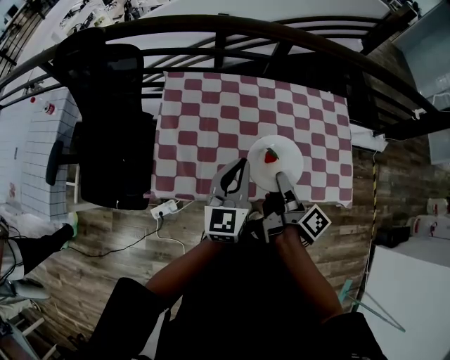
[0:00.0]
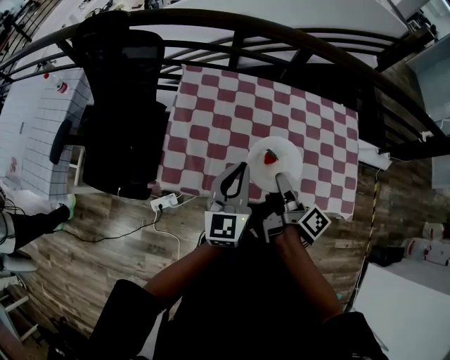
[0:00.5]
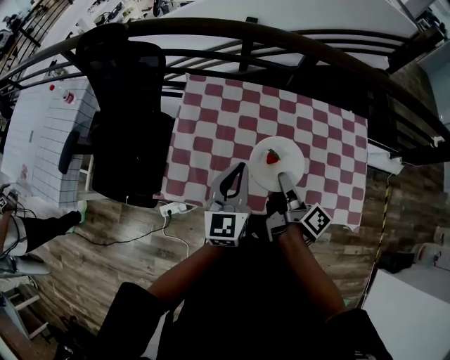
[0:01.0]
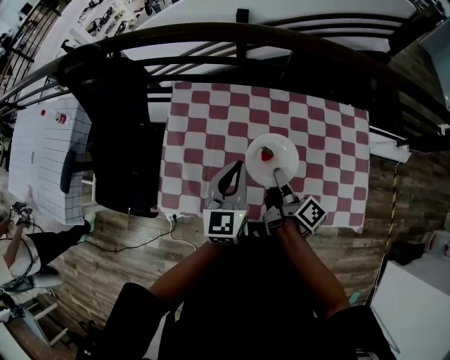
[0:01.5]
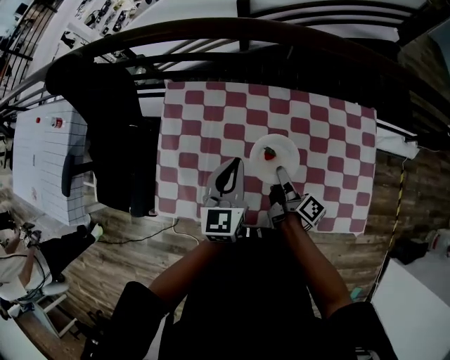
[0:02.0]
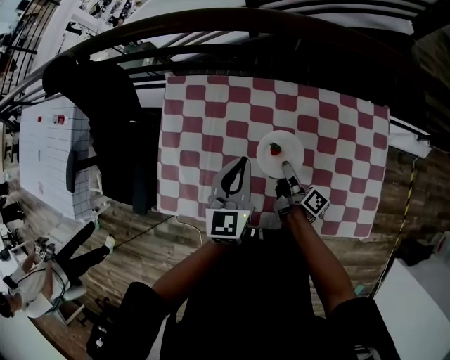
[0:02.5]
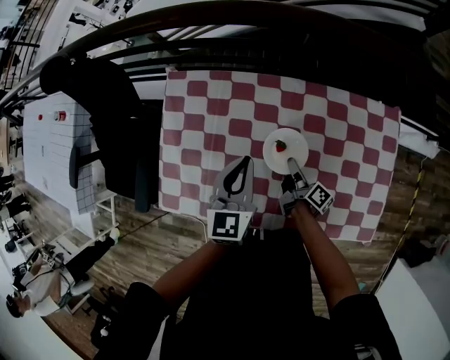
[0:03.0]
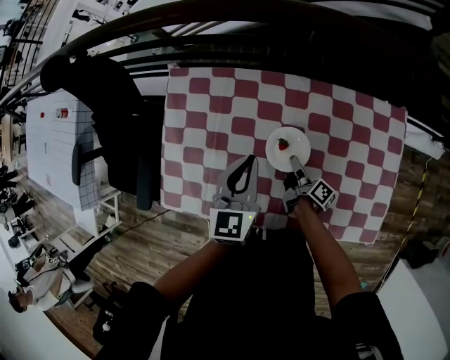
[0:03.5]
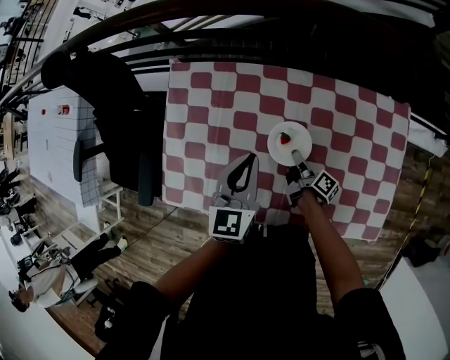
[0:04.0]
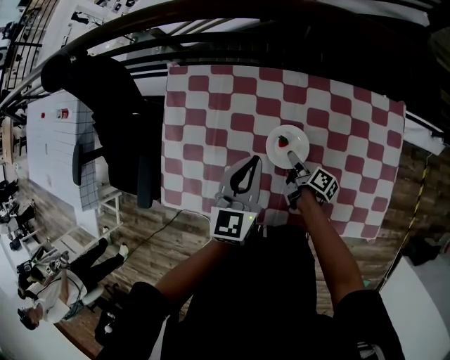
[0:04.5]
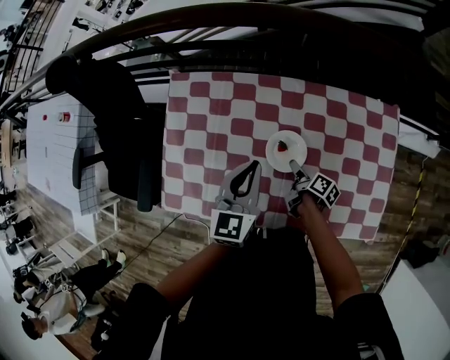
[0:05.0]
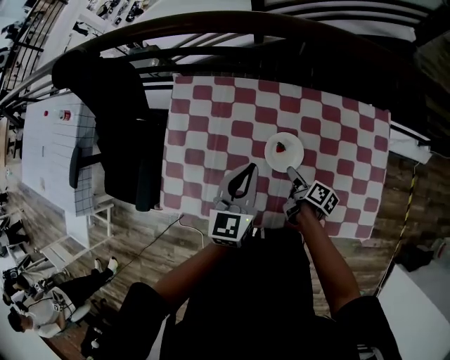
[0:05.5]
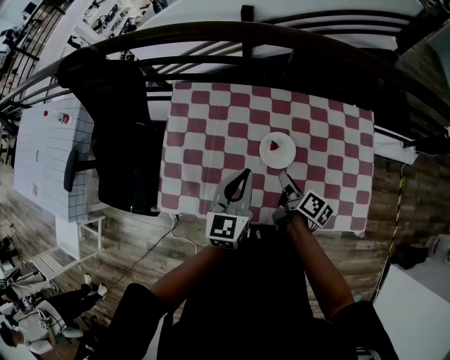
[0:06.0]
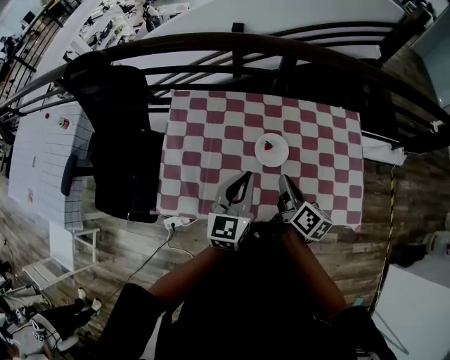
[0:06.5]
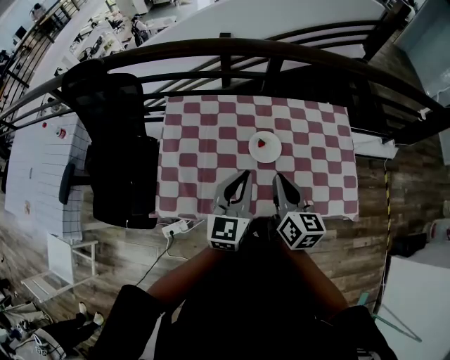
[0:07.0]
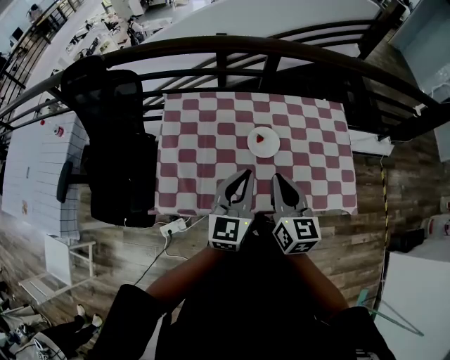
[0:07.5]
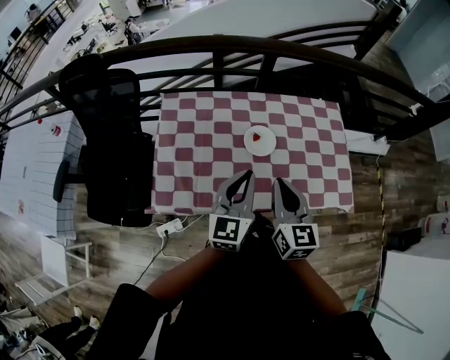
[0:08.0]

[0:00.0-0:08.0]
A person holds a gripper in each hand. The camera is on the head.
0:00.0 to 0:02.0: The left gripper ends up about 15 cm from where it was.
0:02.0 to 0:04.0: The left gripper shifts by about 5 cm.
0:04.0 to 0:06.0: The left gripper shifts by roughly 10 cm.
0:06.0 to 0:08.0: The left gripper moves about 15 cm.

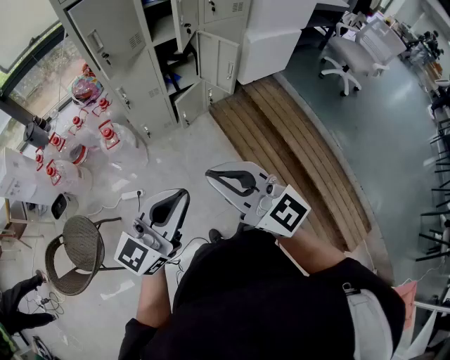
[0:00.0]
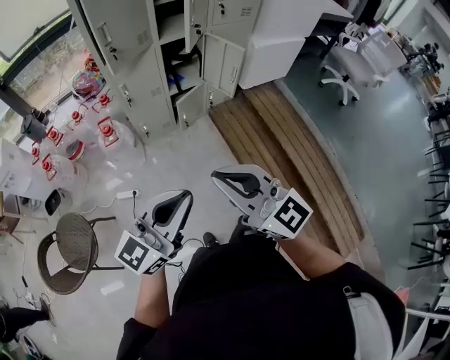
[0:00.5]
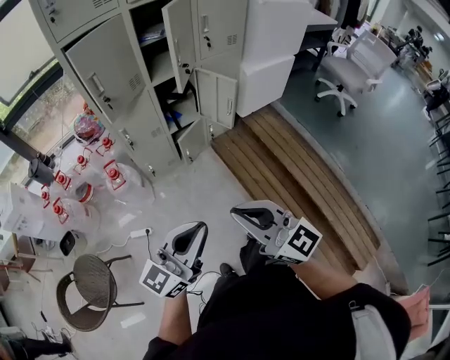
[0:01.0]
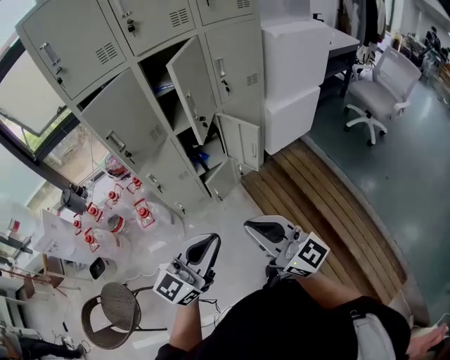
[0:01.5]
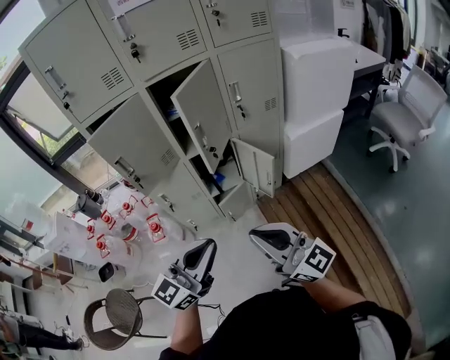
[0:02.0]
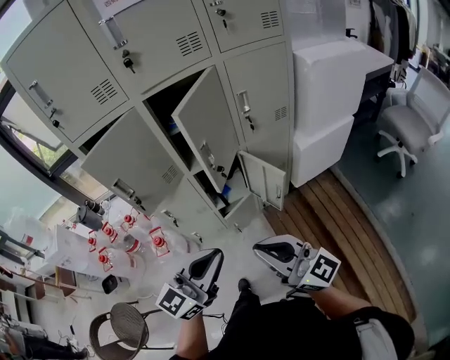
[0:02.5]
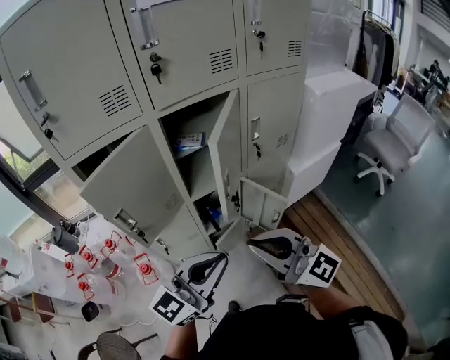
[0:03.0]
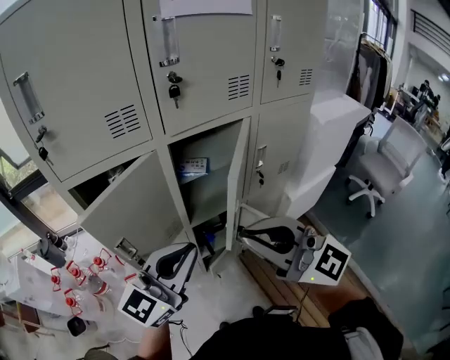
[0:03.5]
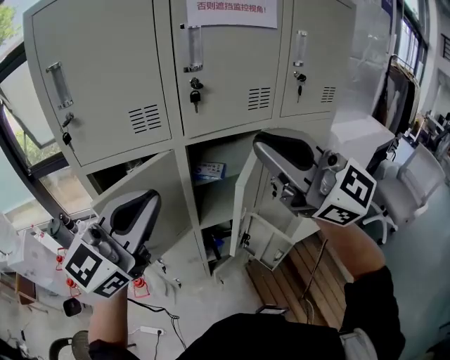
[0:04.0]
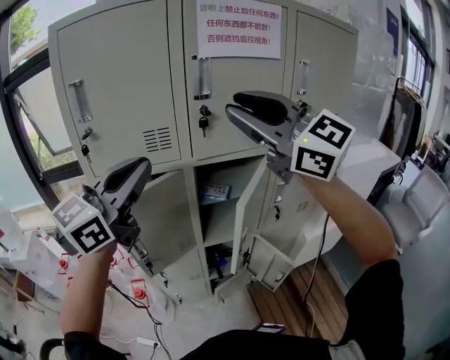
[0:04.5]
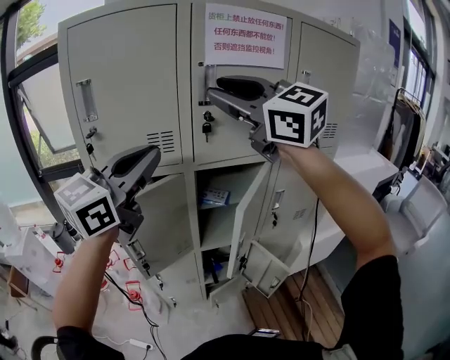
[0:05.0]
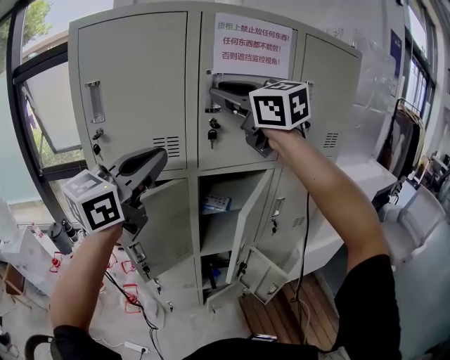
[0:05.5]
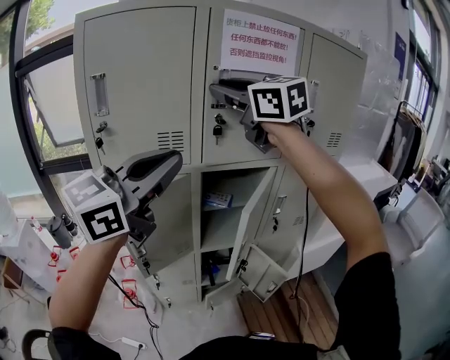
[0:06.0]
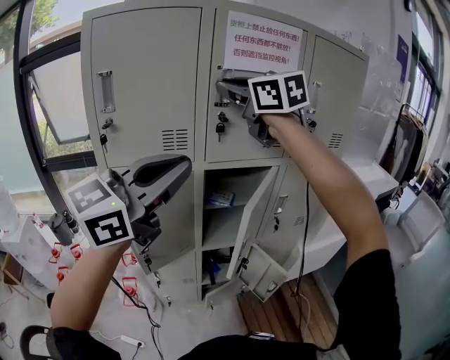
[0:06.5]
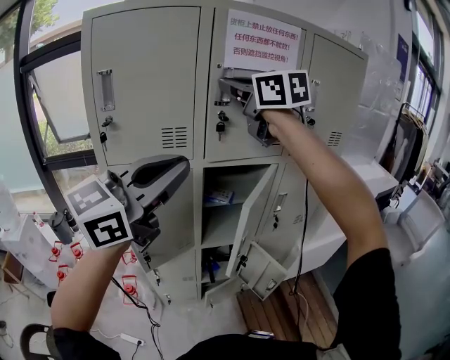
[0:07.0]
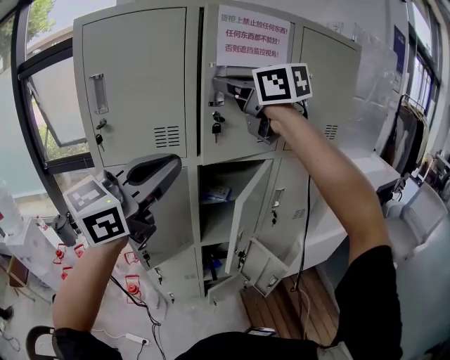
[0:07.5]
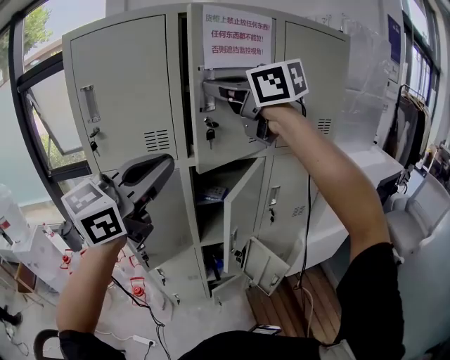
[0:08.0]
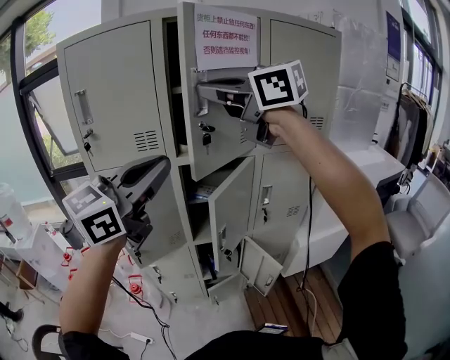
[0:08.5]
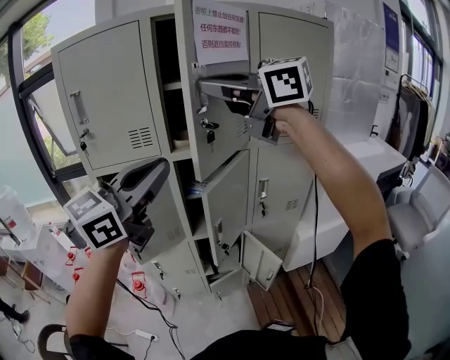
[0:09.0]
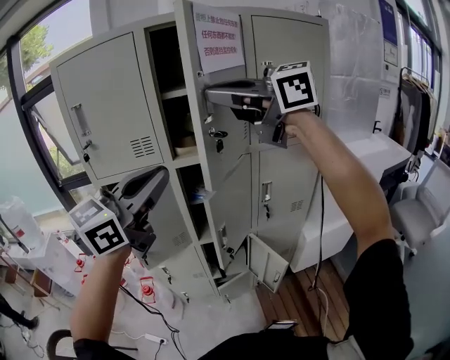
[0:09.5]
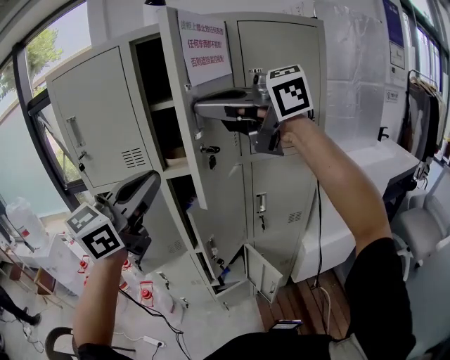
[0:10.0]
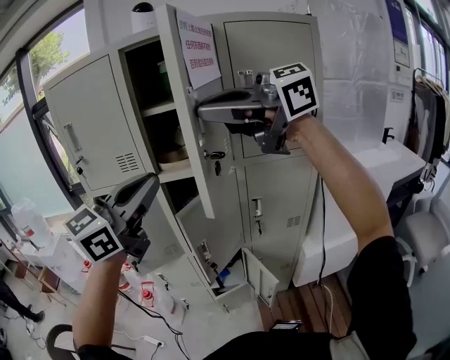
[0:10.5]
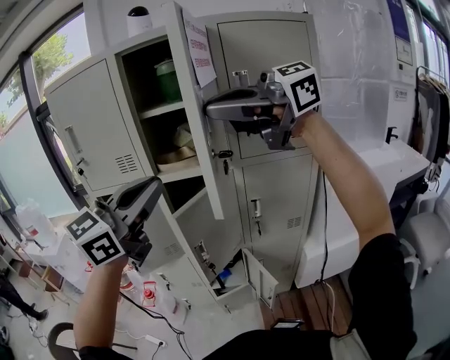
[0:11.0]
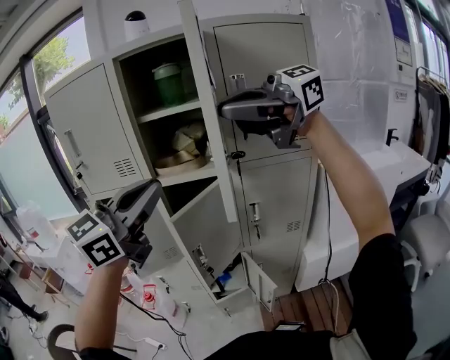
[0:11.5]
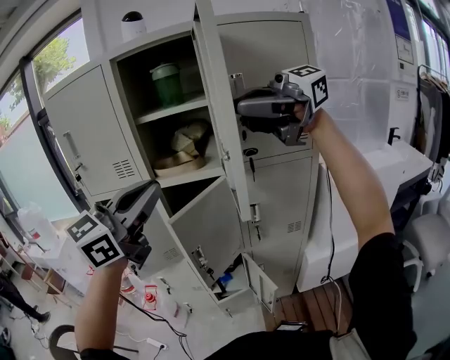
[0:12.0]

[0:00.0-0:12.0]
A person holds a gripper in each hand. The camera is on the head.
0:00.0 to 0:02.0: The left gripper shifts about 30 cm forward. The right gripper heads forward and to the right, covering roughly 30 cm.
0:02.0 to 0:04.0: The right gripper travels forward and upward by some 50 cm, and turns by some 30 degrees; the left gripper heads forward, upward and to the left, covering some 40 cm.
0:04.0 to 0:06.0: The left gripper goes some 10 cm upward, while the right gripper travels forward, upward and to the left by roughly 25 cm, changes its angle by about 20 degrees, and opens up.
0:06.0 to 0:08.0: The right gripper travels backward by about 5 cm, and closes its fingers. The left gripper shifts by some 5 cm.
0:08.0 to 0:10.0: The right gripper moves approximately 15 cm, and turns by approximately 30 degrees, while the left gripper changes place by roughly 10 cm.
0:10.0 to 0:12.0: The right gripper moves some 15 cm, and swivels roughly 30 degrees; the left gripper ends up approximately 10 cm from where it was.

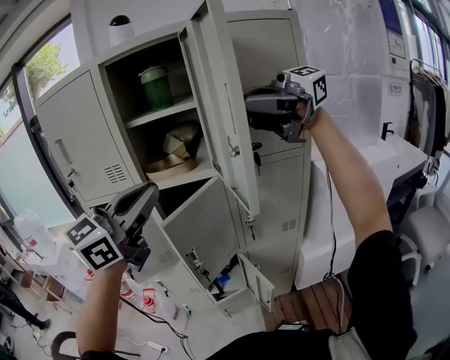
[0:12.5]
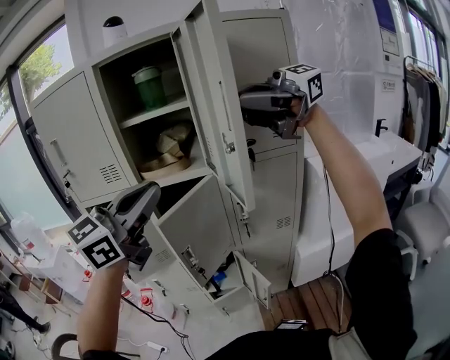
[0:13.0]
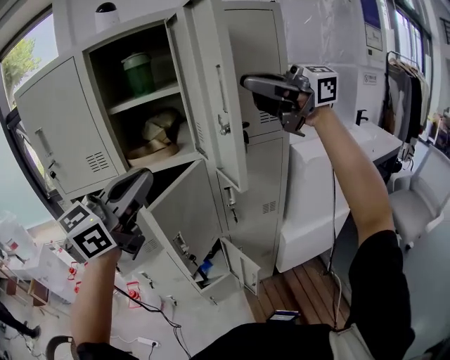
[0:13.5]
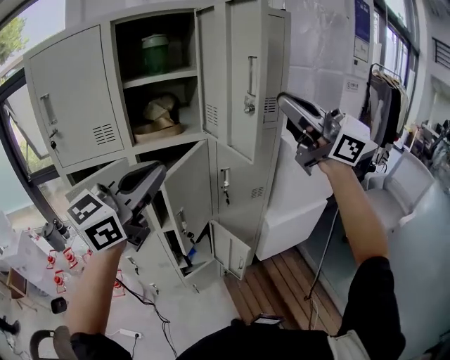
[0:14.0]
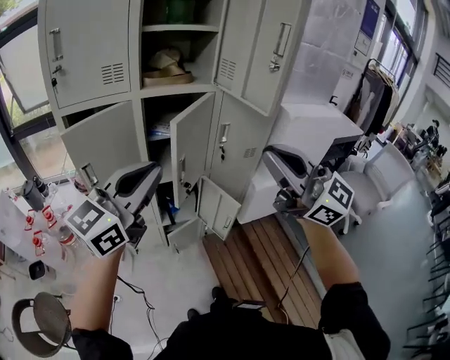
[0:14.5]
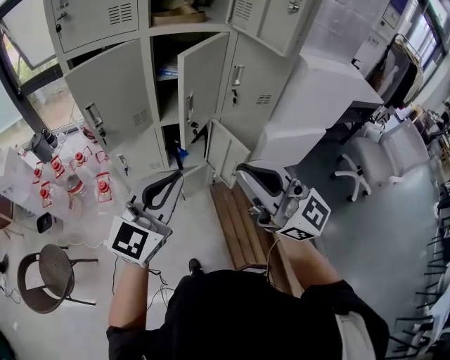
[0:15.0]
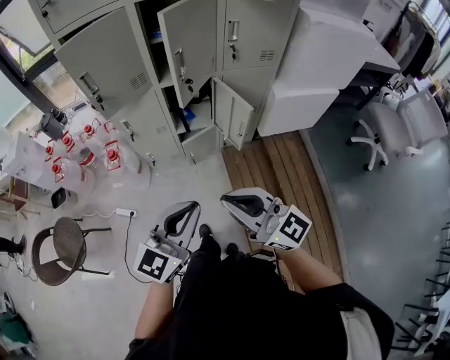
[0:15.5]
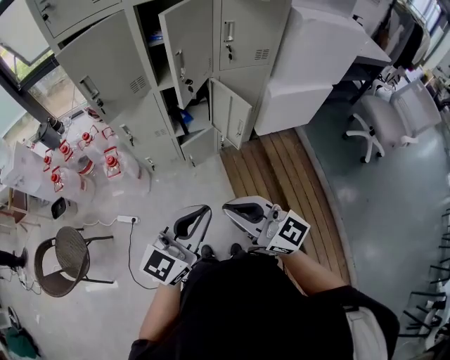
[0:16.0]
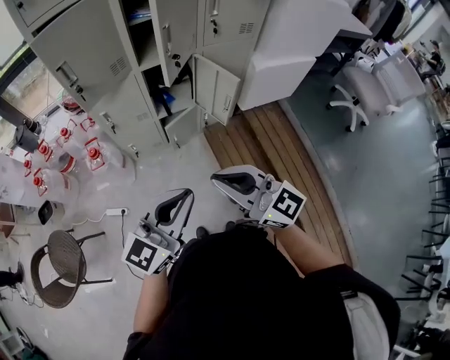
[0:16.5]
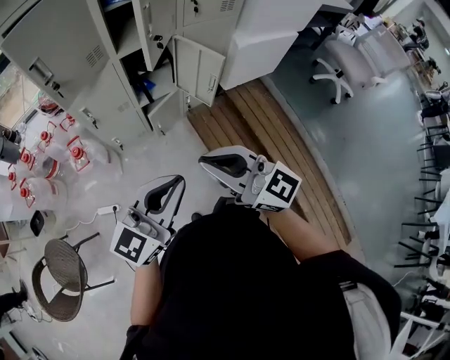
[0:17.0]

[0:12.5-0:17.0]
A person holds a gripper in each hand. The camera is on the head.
0:12.5 to 0:14.5: The right gripper ends up some 30 cm from where it was, and rotates approximately 70 degrees; the left gripper moves some 20 cm.
0:14.5 to 0:17.0: The right gripper is displaced downward, backward and to the left by approximately 40 cm, while the left gripper goes some 35 cm downward and backward.

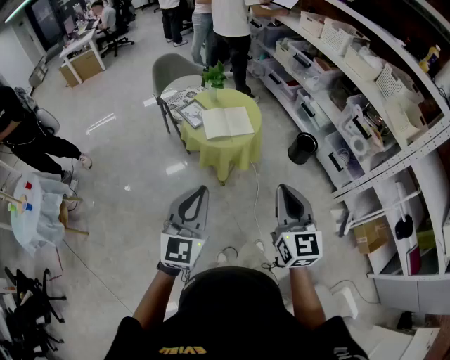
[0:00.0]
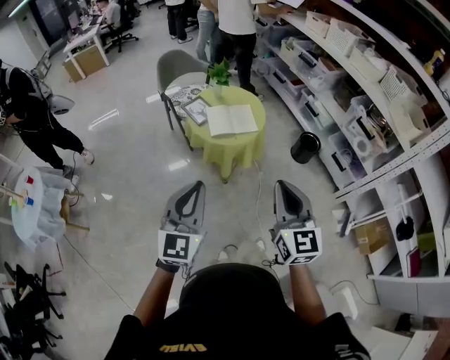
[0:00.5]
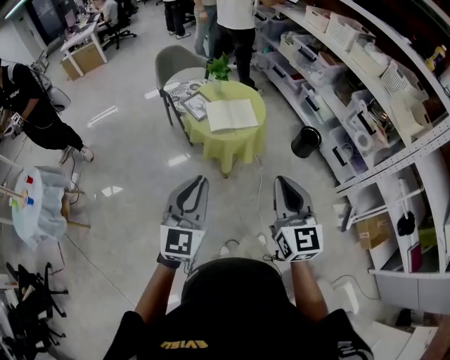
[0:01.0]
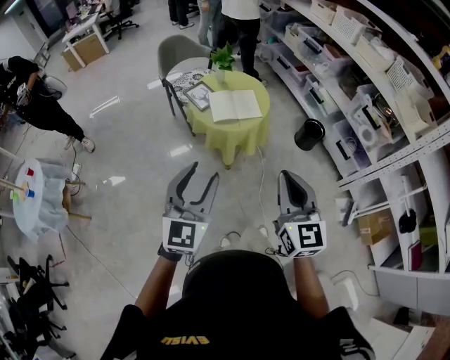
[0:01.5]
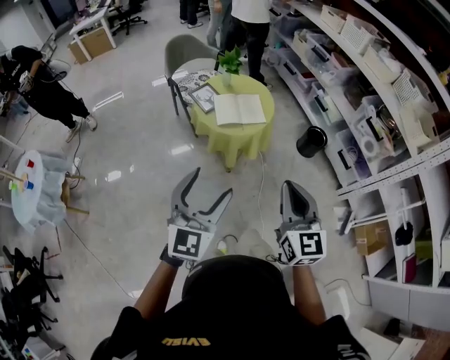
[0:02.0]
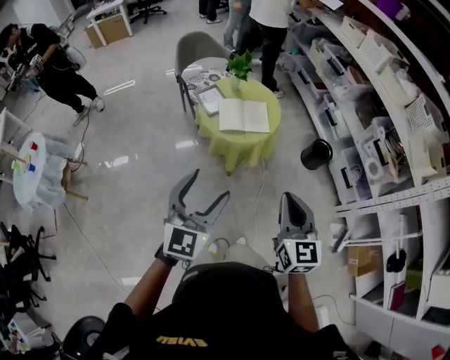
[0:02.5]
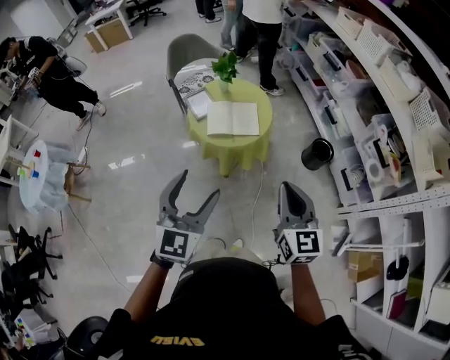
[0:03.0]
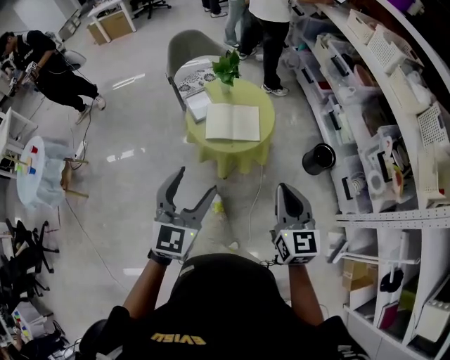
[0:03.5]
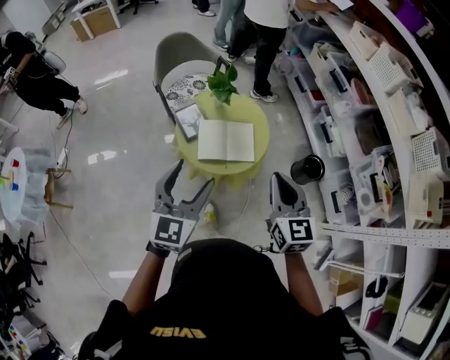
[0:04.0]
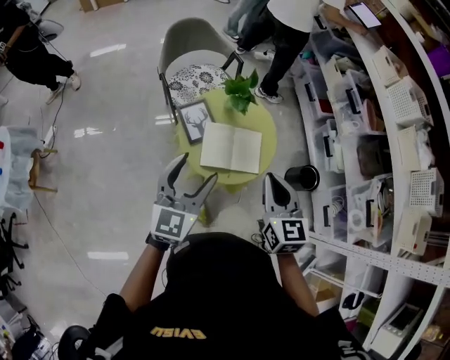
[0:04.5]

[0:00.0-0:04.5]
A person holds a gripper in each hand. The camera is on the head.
0:00.0 to 0:02.0: The left gripper opens.
0:02.0 to 0:04.5: The two grippers travel together, forward, some 40 cm. The left gripper turns by about 20 degrees.
